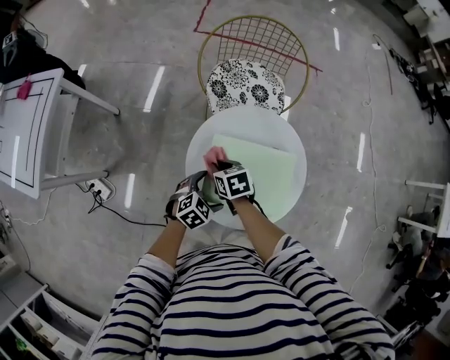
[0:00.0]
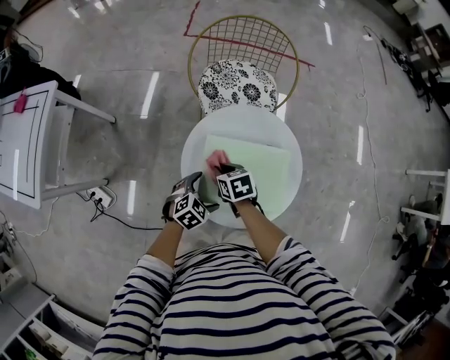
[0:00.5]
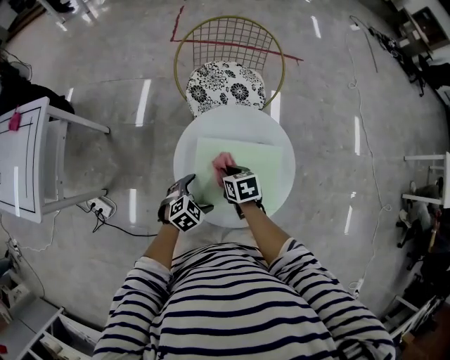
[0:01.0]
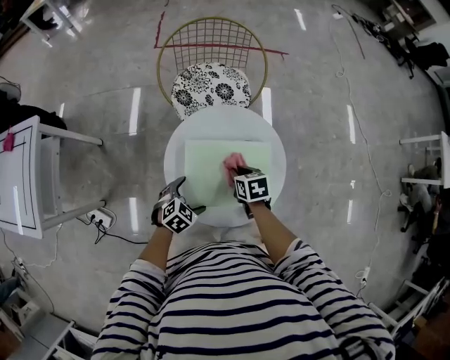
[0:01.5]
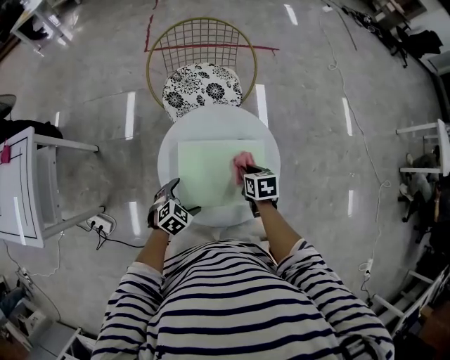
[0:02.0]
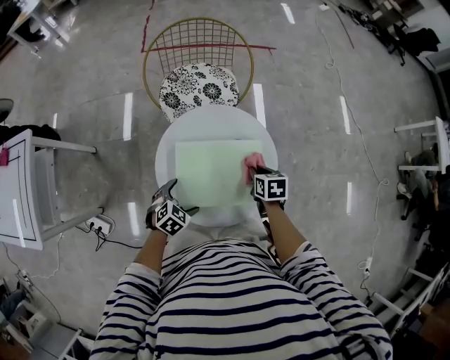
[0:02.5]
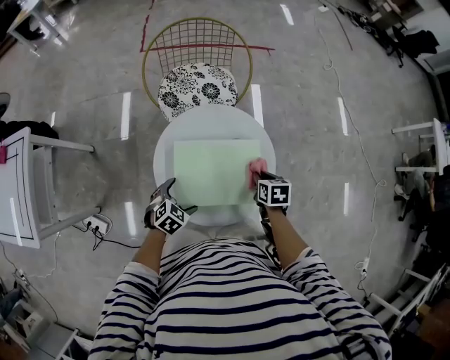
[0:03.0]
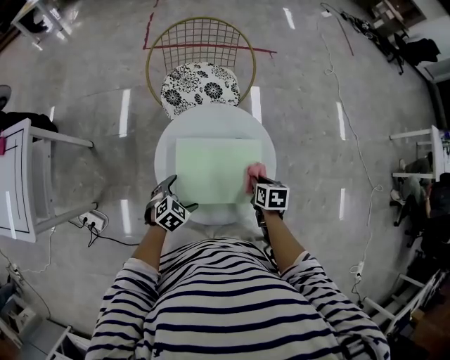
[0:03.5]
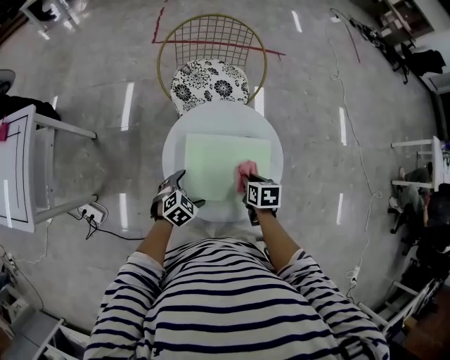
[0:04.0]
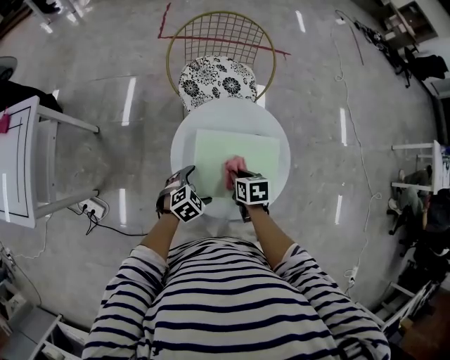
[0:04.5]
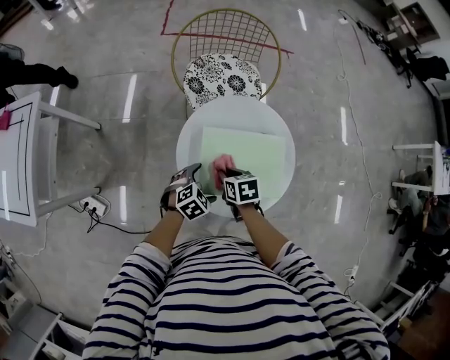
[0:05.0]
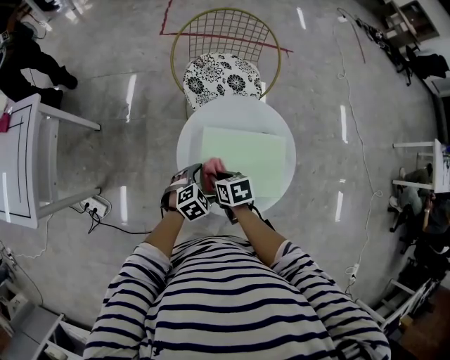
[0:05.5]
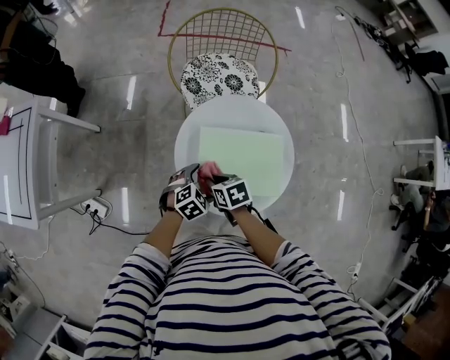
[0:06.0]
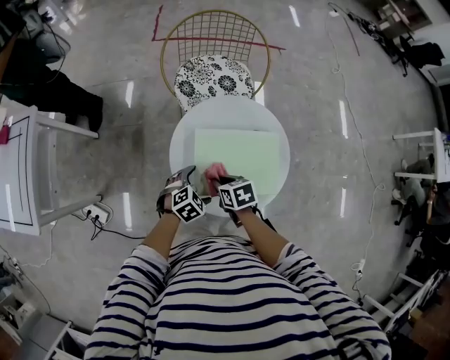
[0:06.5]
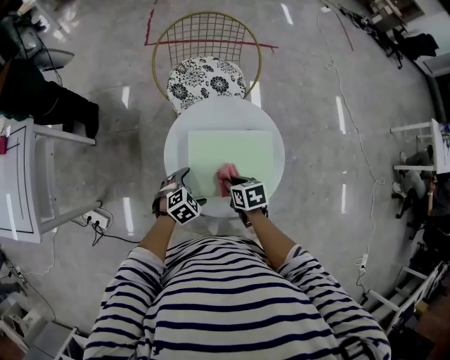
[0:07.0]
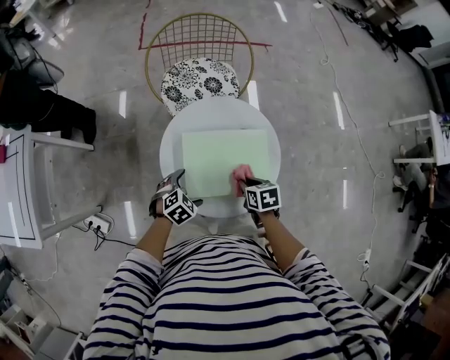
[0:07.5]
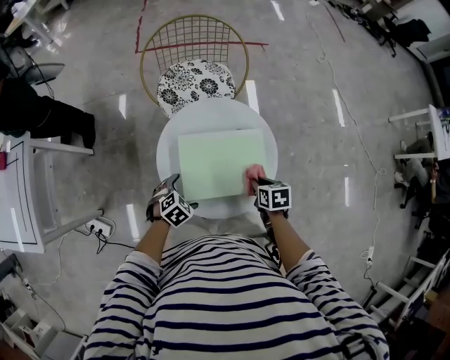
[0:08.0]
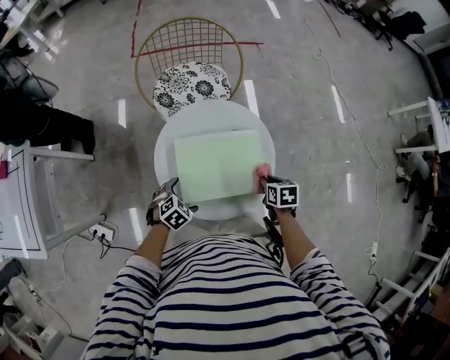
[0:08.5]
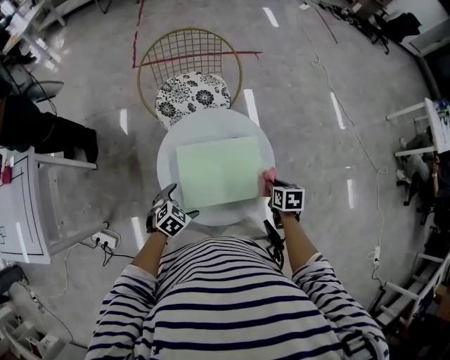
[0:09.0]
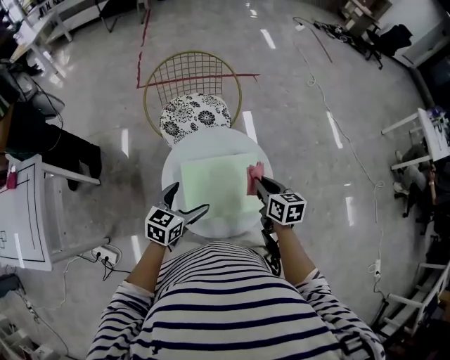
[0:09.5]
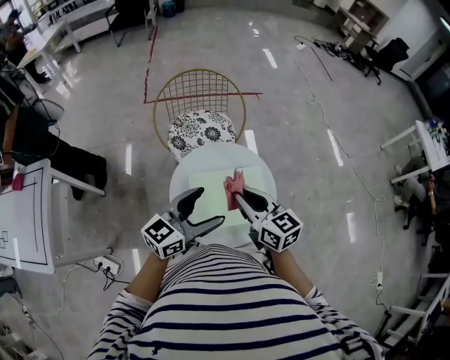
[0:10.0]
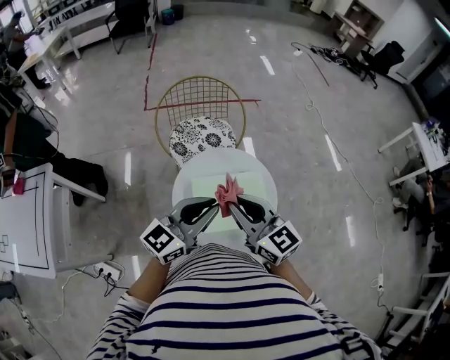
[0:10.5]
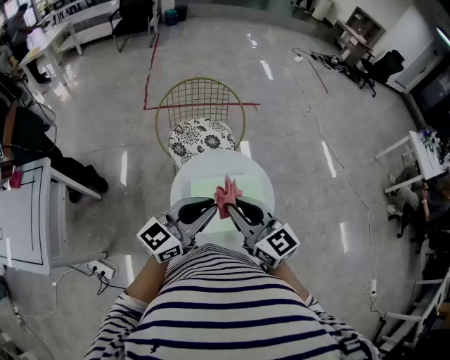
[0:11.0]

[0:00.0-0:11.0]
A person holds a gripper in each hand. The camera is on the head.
0:00.0 to 0:02.0: The right gripper shifts about 20 cm to the right, and rotates some 30 degrees.
0:02.0 to 0:03.5: The right gripper travels to the right by approximately 5 cm.
0:03.5 to 0:05.5: The right gripper goes some 25 cm to the left, and swivels approximately 20 degrees.
0:05.5 to 0:07.5: The right gripper goes about 15 cm to the right.
0:07.5 to 0:09.0: The right gripper shifts roughly 15 cm to the right.
0:09.0 to 0:11.0: The left gripper goes about 35 cm upward, points its fingers about 70 degrees further upward, and closes. The right gripper travels upward and to the left by approximately 40 cm, and tips its fingers upward by approximately 50 degrees.

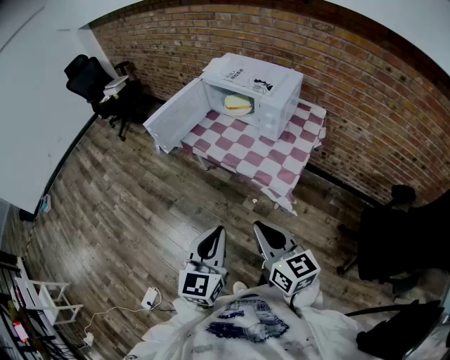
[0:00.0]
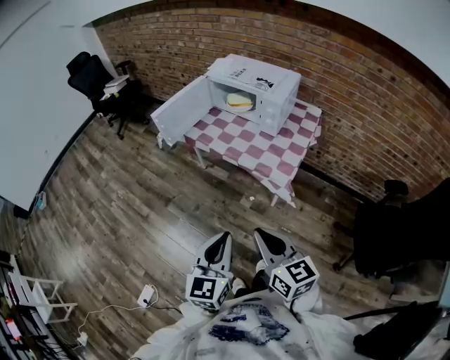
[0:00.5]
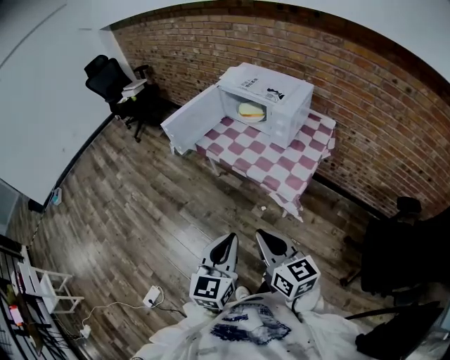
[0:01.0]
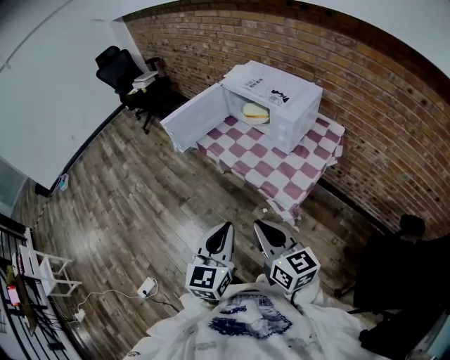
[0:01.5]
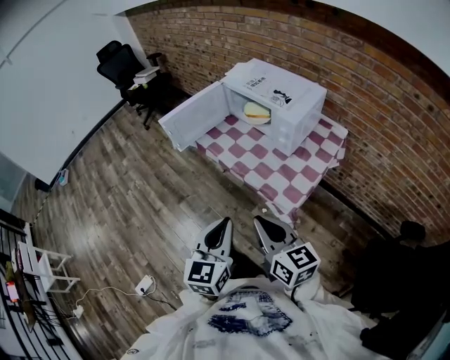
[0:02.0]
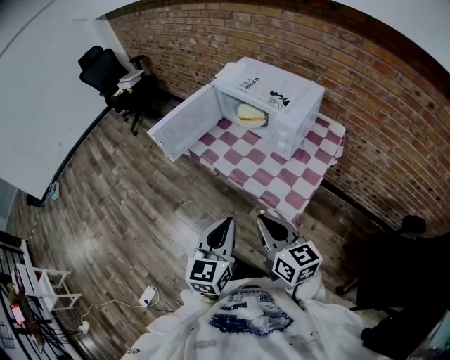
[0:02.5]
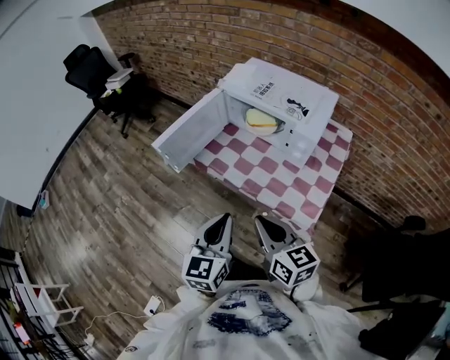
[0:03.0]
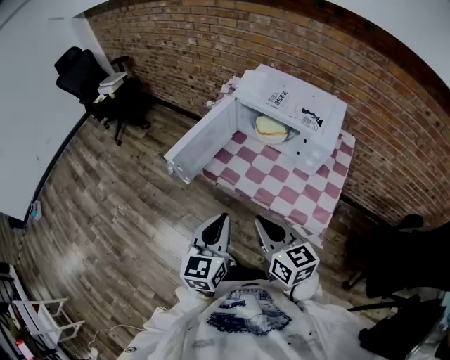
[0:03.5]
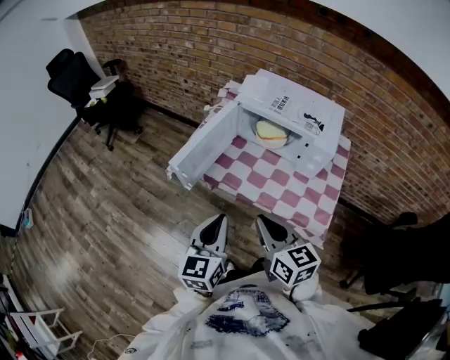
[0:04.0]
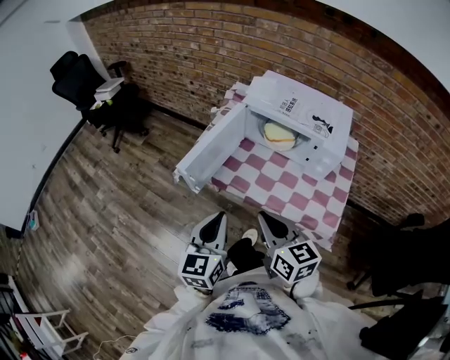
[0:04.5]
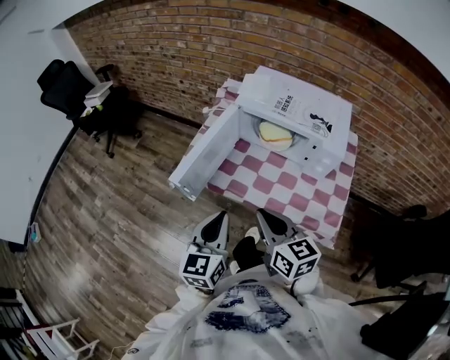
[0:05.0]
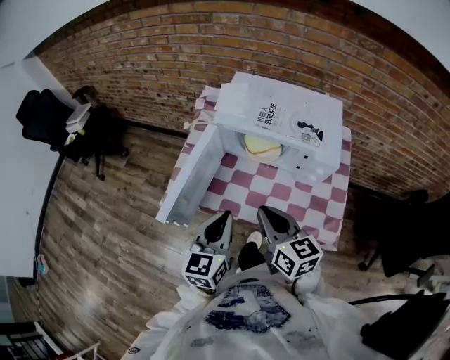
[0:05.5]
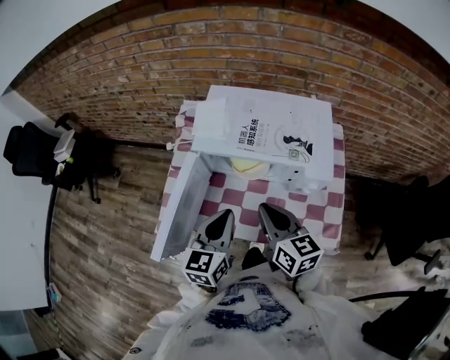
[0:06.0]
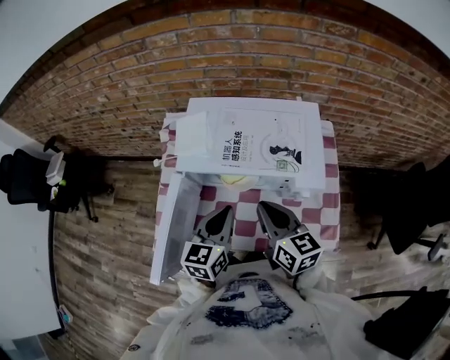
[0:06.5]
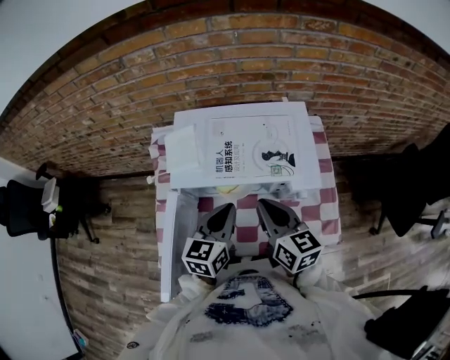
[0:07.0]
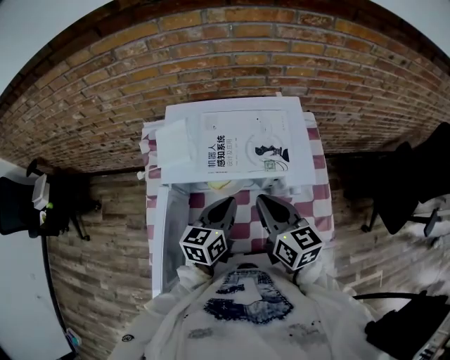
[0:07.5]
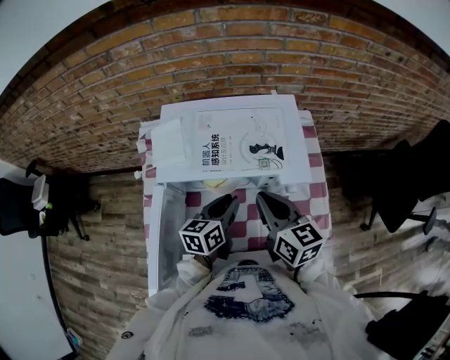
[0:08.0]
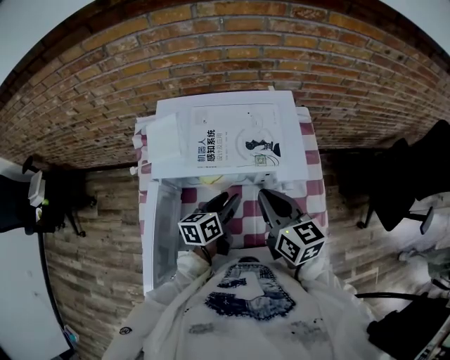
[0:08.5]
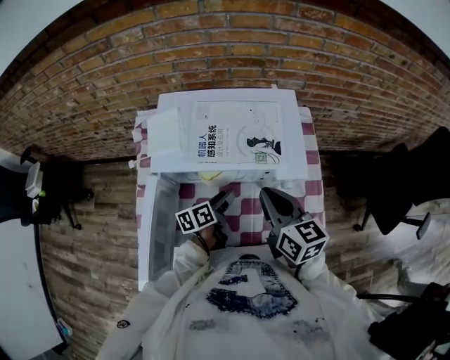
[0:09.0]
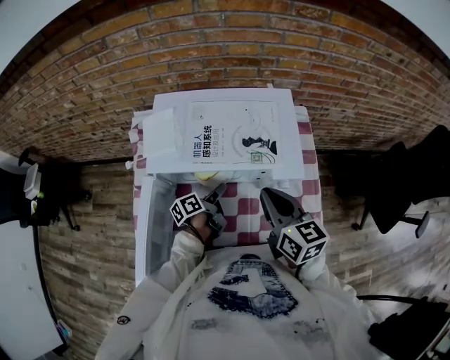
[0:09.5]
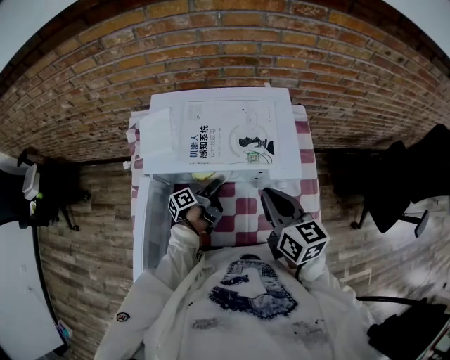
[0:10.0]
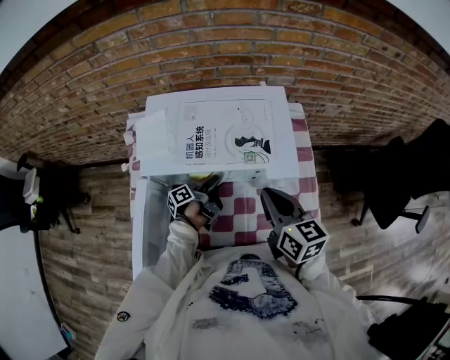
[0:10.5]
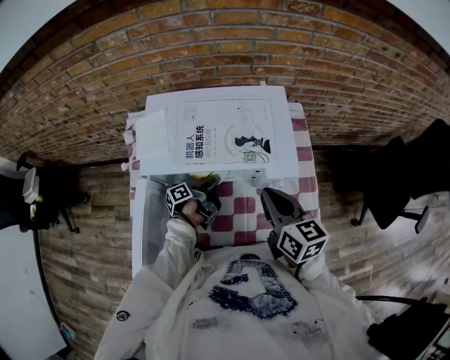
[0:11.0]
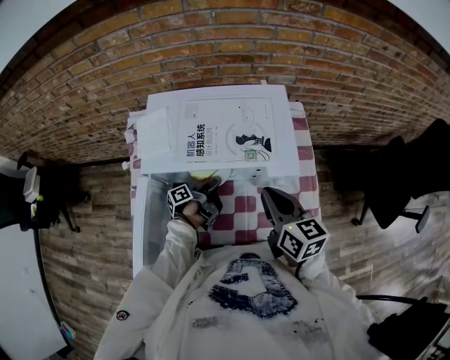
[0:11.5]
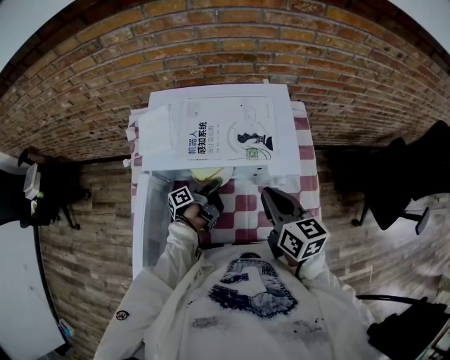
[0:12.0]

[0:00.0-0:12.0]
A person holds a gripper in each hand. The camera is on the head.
0:00.0 to 0:02.0: The right gripper changes place by approximately 5 cm. The left gripper goes about 5 cm to the right, and travels backward and back again, some 10 cm each way.
0:02.0 to 0:04.0: Both grippers move forward and to the left, roughly 30 cm. The right gripper turns by about 20 degrees.
0:04.0 to 0:06.0: The grippers both shift forward by some 25 cm. The left gripper changes its angle by approximately 20 degrees.
0:06.0 to 0:08.0: The right gripper travels forward and to the right by some 10 cm, while the left gripper goes approximately 15 cm forward, downward and to the right, and swivels about 30 degrees.
0:08.0 to 0:10.0: The left gripper travels downward by approximately 15 cm, rolls counterclockwise, seen from behind, by roughly 60 degrees, and opens its fingers.
0:10.0 to 0:12.0: The left gripper closes up.

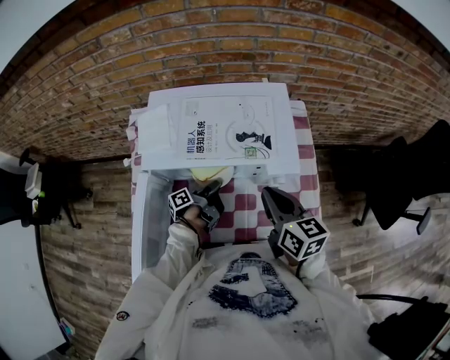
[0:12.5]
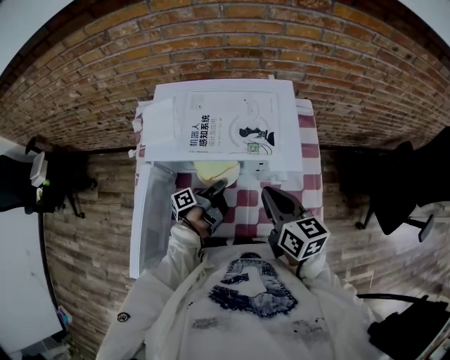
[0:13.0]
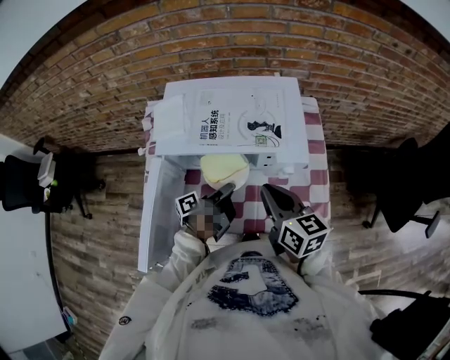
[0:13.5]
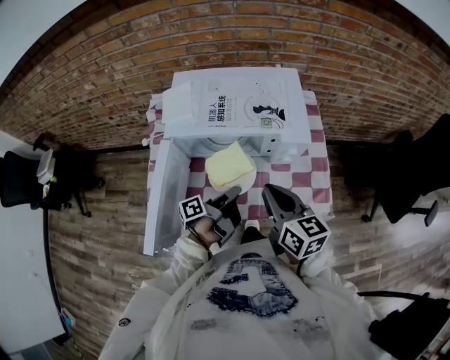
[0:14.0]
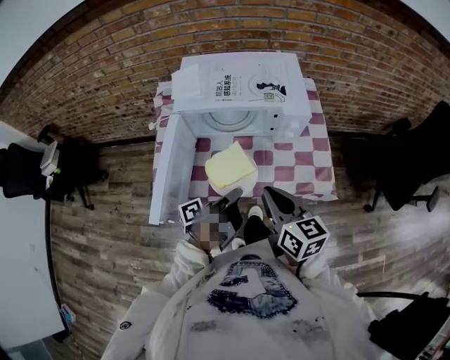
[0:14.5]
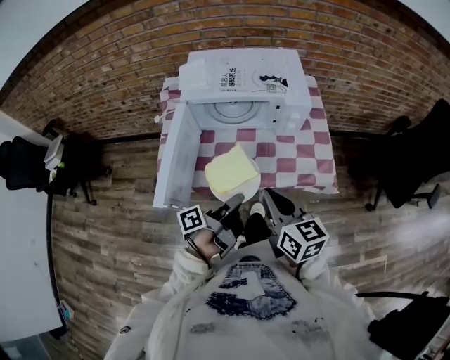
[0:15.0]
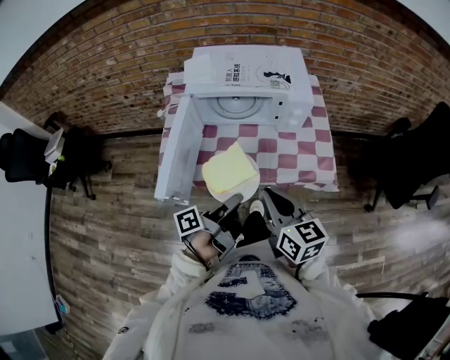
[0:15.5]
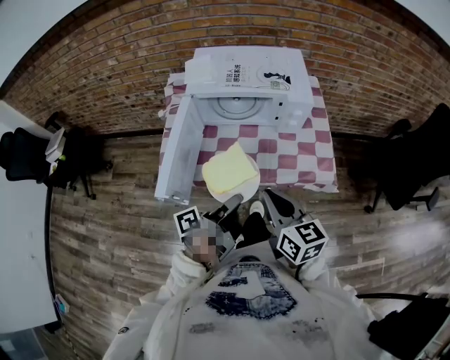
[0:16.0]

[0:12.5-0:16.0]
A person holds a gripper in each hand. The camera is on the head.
0:12.5 to 0:14.5: The right gripper goes some 20 cm backward, while the left gripper goes approximately 25 cm backward and upward.
0:14.5 to 0:16.0: The left gripper travels backward and upward by roughly 10 cm. Meanwhile the right gripper goes about 10 cm backward.
